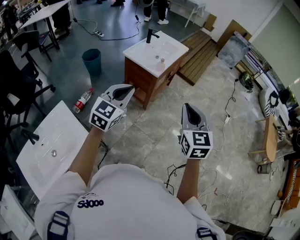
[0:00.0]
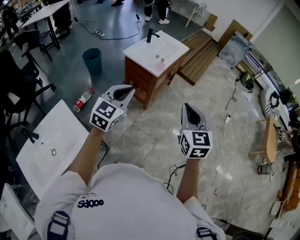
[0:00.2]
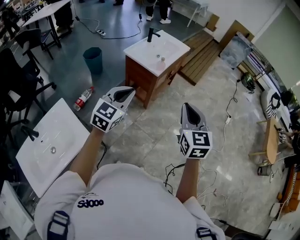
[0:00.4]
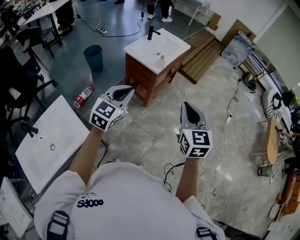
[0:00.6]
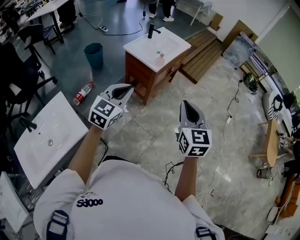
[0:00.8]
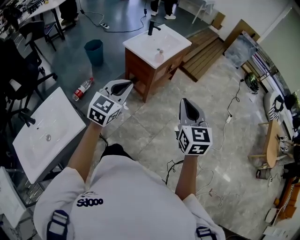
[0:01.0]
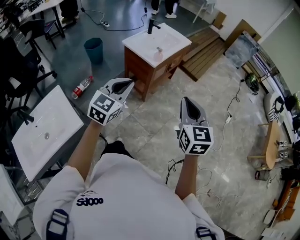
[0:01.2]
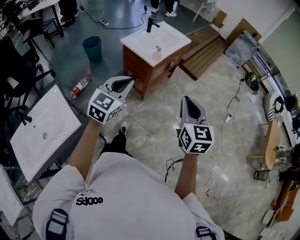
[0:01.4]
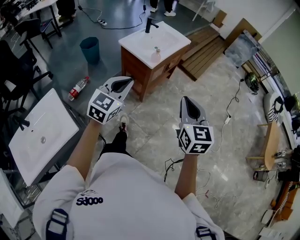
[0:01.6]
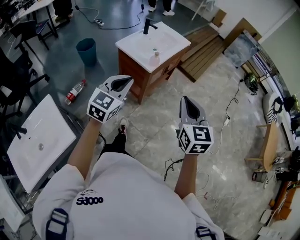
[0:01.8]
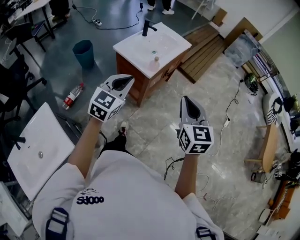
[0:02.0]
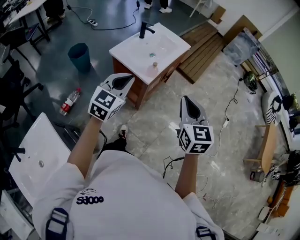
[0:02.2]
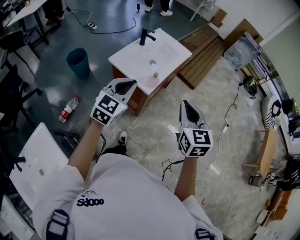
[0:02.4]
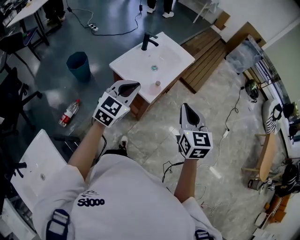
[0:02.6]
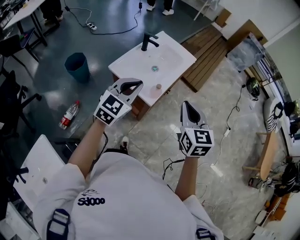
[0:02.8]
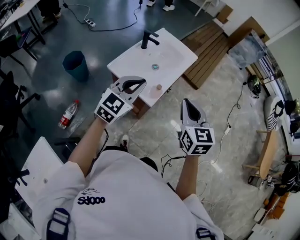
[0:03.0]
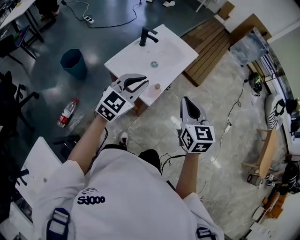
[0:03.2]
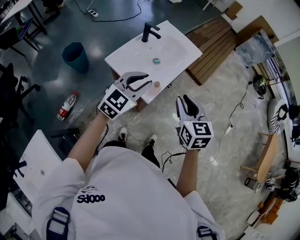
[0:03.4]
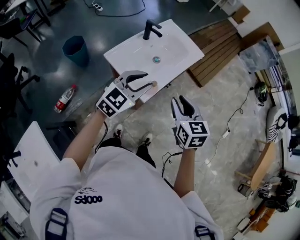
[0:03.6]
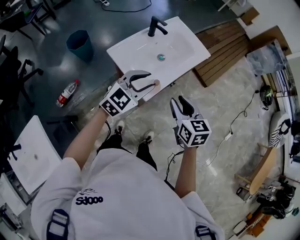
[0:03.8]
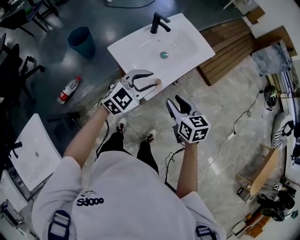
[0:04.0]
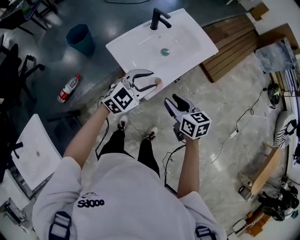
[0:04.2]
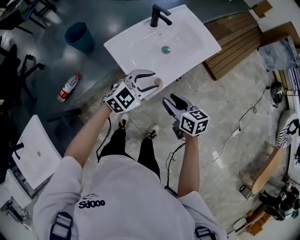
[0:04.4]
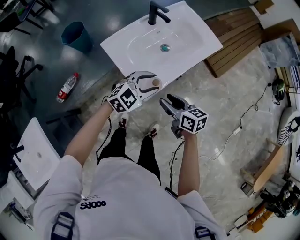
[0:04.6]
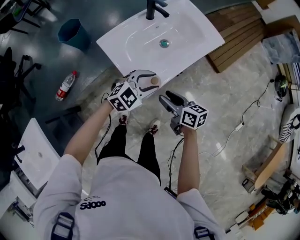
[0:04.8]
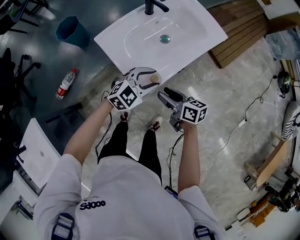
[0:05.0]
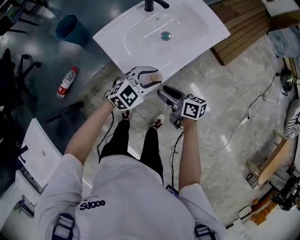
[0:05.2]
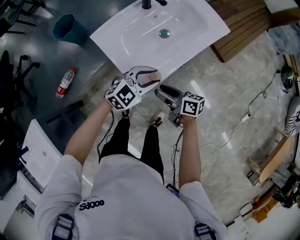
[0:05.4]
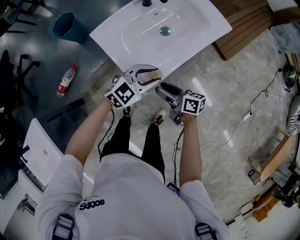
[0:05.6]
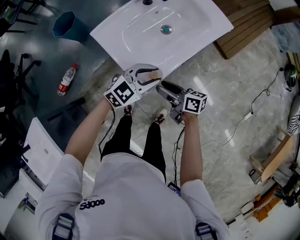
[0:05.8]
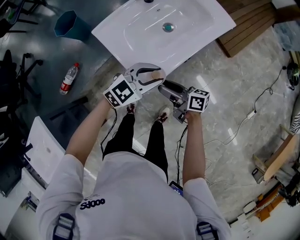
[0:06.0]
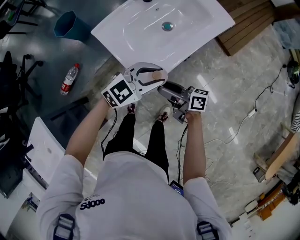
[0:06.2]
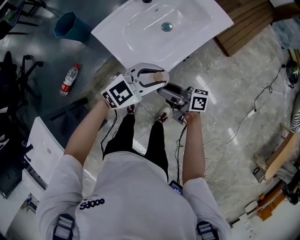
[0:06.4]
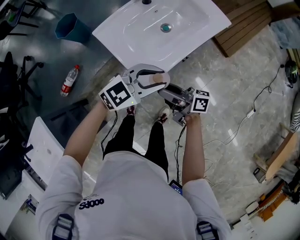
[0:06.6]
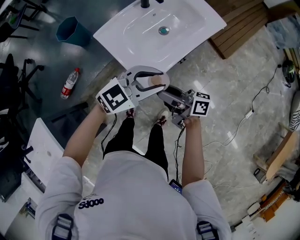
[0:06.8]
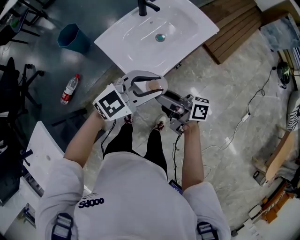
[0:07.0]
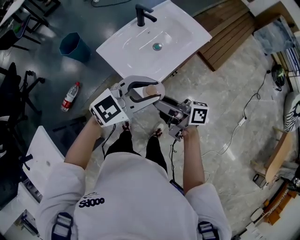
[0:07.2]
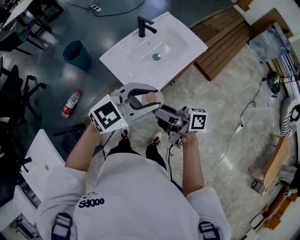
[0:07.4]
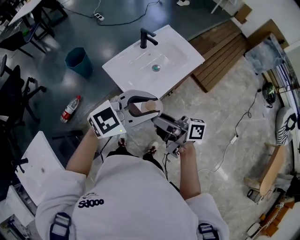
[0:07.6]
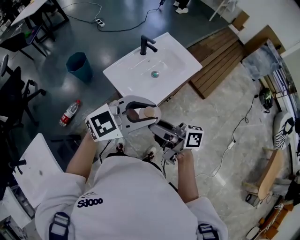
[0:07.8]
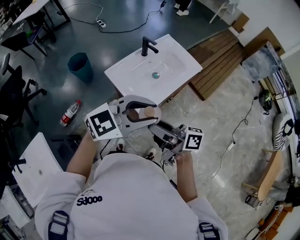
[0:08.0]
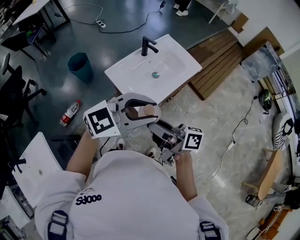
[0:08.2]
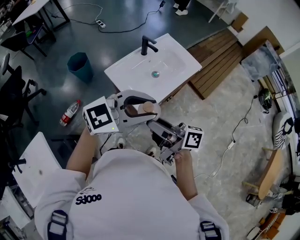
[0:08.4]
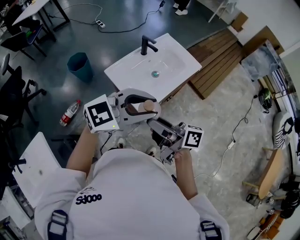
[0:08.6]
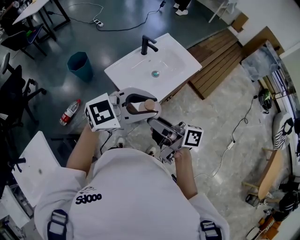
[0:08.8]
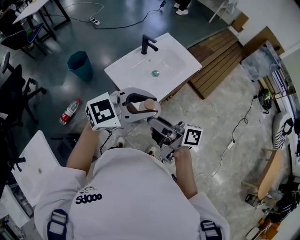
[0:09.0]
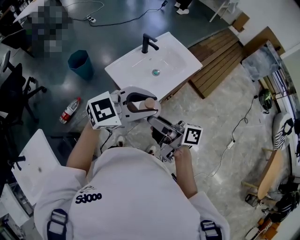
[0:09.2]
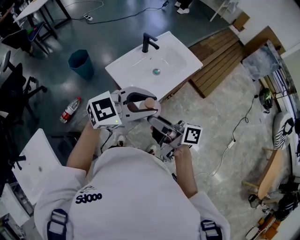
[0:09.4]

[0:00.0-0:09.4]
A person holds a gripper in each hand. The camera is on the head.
0.0 to 1.6 s: The left gripper heads to the right, covering roughly 5 cm, while the right gripper travels to the right and forward by approximately 10 cm.
1.6 to 3.2 s: The two grippers go roughly 35 cm forward.
3.2 to 4.8 s: The right gripper travels downward by approximately 25 cm, rotates some 60 degrees, and opens up. Meanwhile the left gripper shifts some 25 cm downward and to the right, and opens.
4.8 to 6.2 s: The right gripper turns by about 30 degrees.
6.2 to 7.8 s: The grippers both shift upward by some 25 cm.
7.8 to 9.4 s: There are only small adjustments of the grippers.

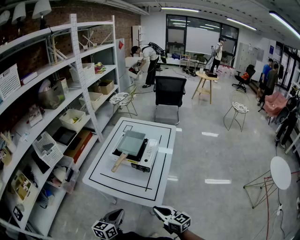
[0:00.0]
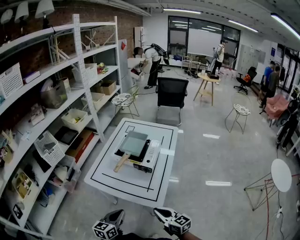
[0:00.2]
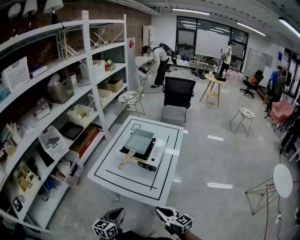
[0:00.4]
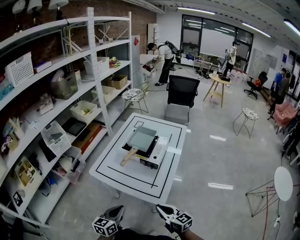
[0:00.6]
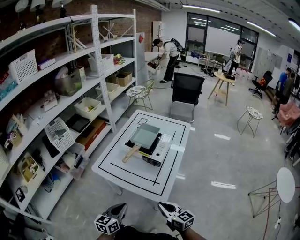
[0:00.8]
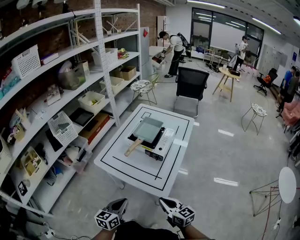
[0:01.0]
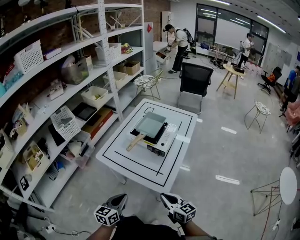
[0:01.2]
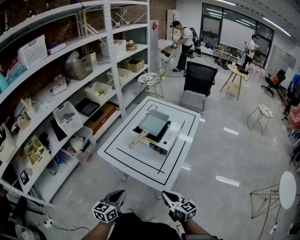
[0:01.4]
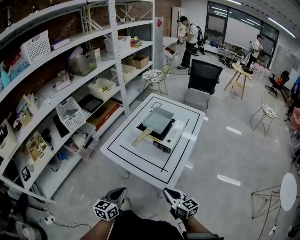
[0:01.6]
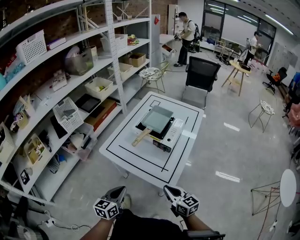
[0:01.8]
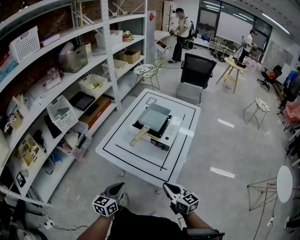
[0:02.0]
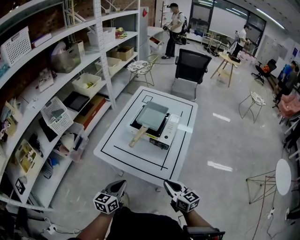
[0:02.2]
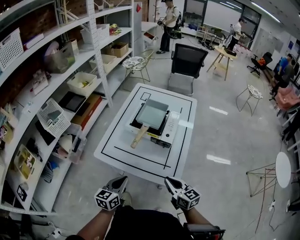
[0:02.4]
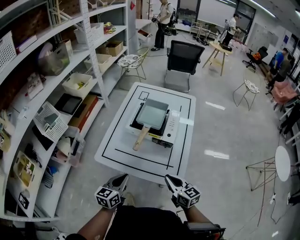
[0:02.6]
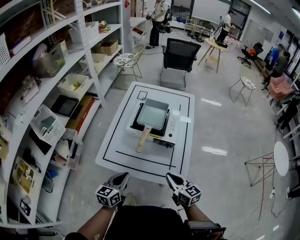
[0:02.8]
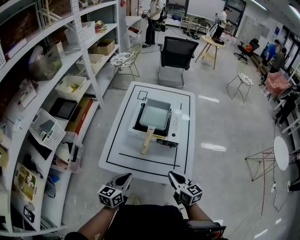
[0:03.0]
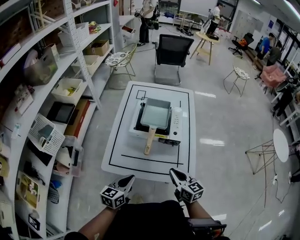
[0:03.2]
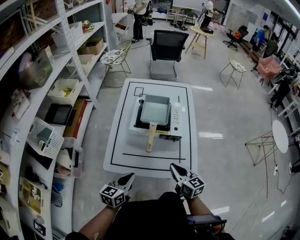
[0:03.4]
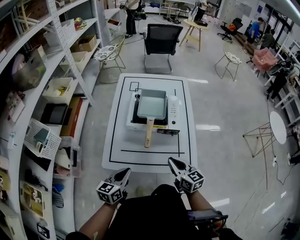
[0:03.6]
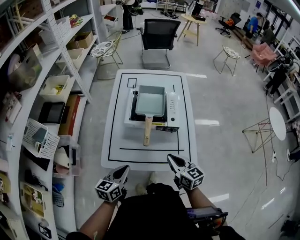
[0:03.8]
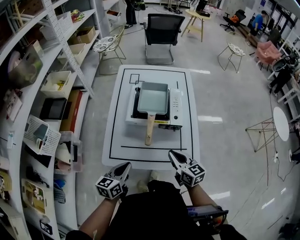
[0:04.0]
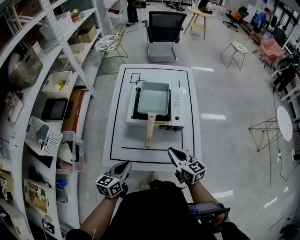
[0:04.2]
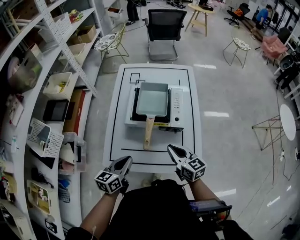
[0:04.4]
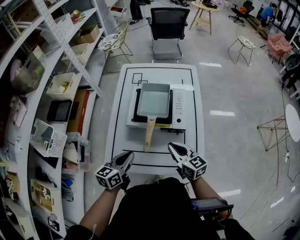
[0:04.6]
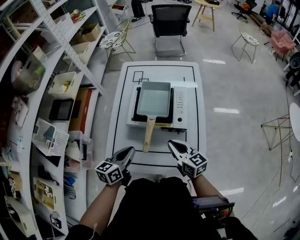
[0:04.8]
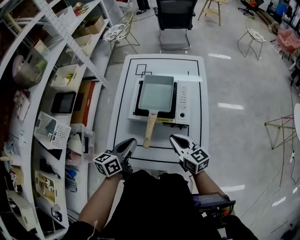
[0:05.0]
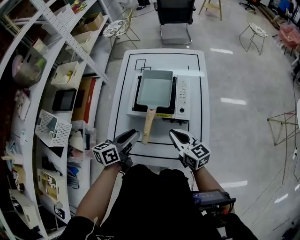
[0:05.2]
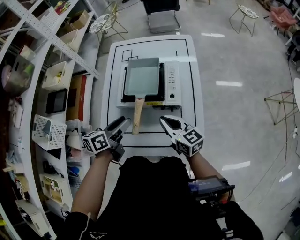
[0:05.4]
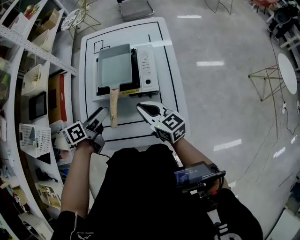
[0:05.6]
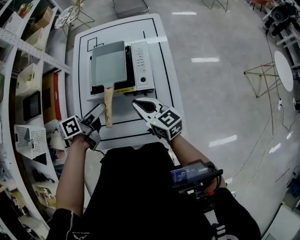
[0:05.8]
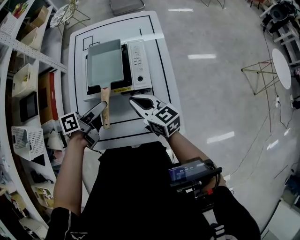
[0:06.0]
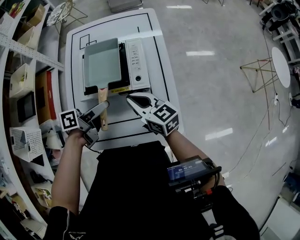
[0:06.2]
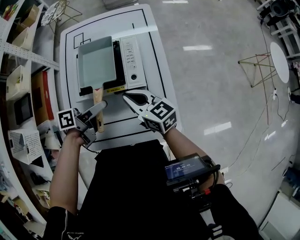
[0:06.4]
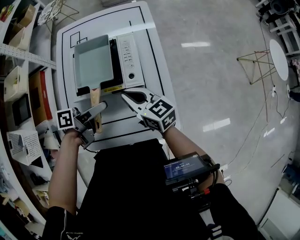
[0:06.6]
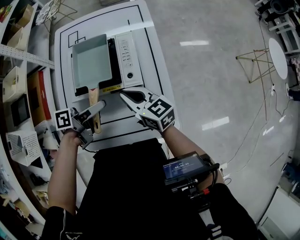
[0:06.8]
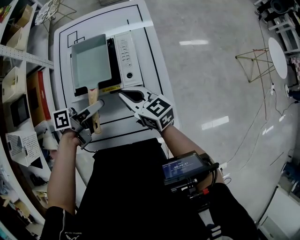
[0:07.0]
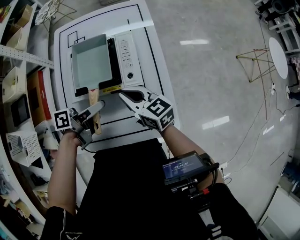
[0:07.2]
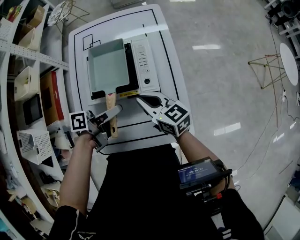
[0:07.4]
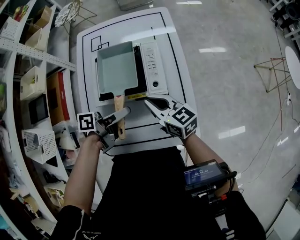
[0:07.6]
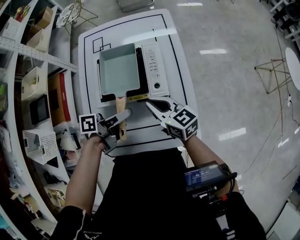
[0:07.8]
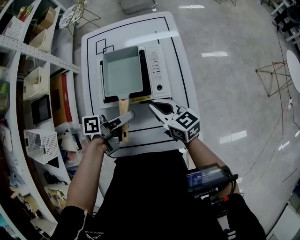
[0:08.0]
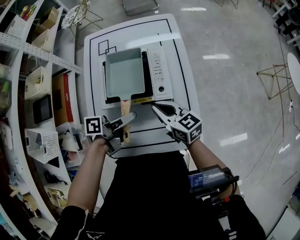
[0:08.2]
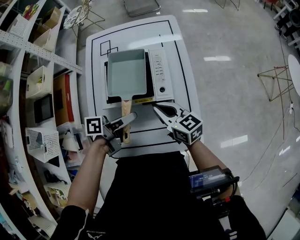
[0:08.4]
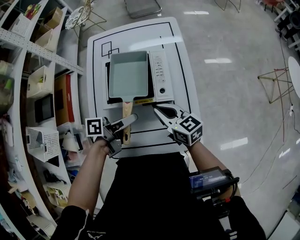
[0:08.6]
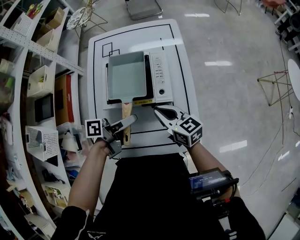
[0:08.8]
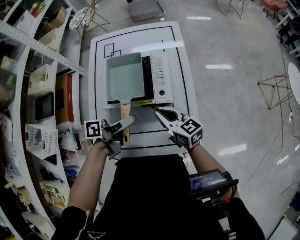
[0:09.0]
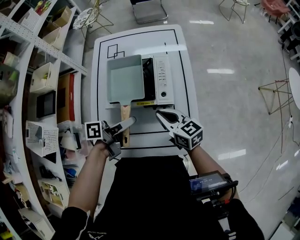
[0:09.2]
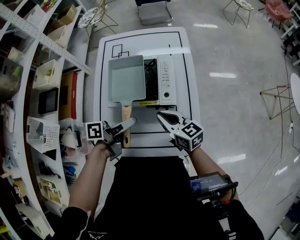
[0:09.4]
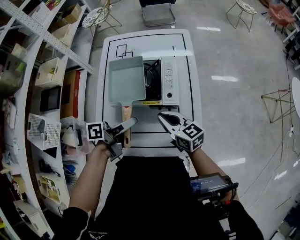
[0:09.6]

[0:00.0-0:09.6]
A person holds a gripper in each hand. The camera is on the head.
0.0 to 1.6 s: There are only small adjustments of the grippers.
1.6 to 3.2 s: The left gripper ends up about 20 cm from where it was, and swivels about 30 degrees, while the right gripper ends up roughly 15 cm from where it was, and rotates approximately 30 degrees.
3.2 to 4.8 s: Both grippers move forward, about 10 cm.
4.8 to 6.4 s: The right gripper heads forward, covering roughly 5 cm. The left gripper moves to the right and forward, about 15 cm, turns by about 50 degrees, and opens its fingers.
6.4 to 8.0 s: The left gripper closes its fingers.
8.0 to 9.6 s: There are only small adjustments of the grippers.

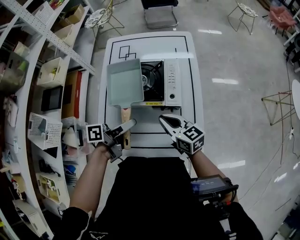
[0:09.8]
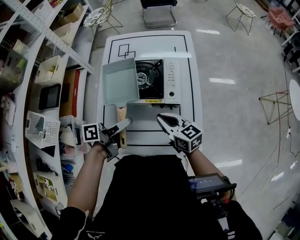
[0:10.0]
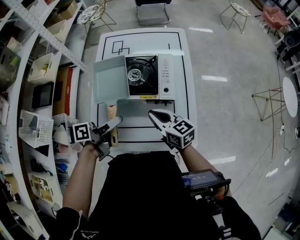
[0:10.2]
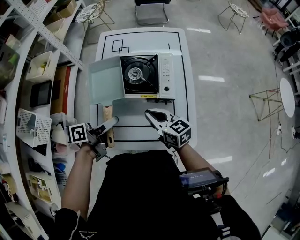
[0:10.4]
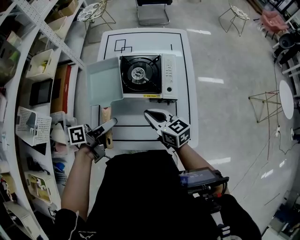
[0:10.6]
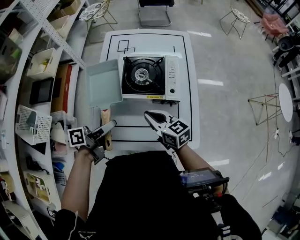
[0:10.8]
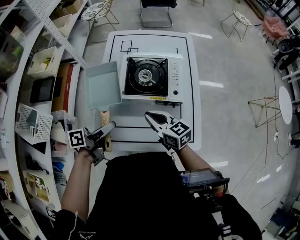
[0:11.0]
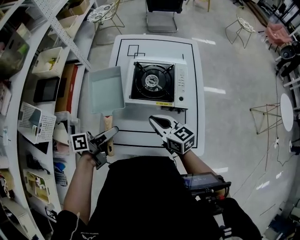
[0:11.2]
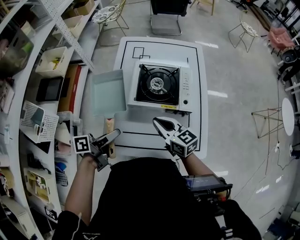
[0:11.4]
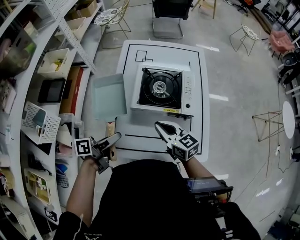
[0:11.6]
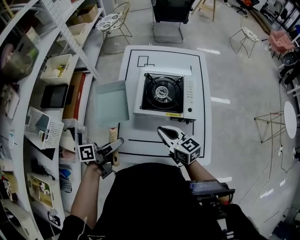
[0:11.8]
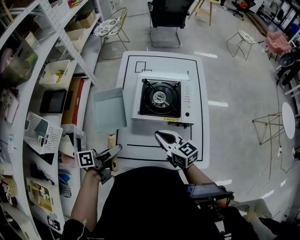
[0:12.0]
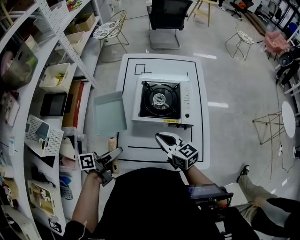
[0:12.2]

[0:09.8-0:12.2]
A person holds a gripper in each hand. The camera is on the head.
9.8 to 11.0 s: Both grippers travel together to the left, approximately 10 cm.
11.0 to 12.2 s: The left gripper ends up about 5 cm from where it was.

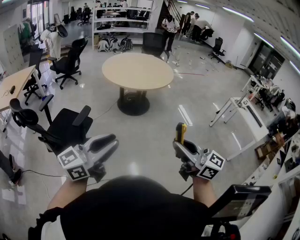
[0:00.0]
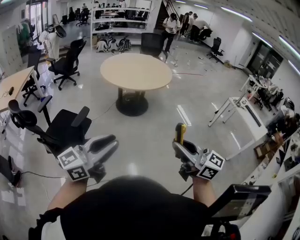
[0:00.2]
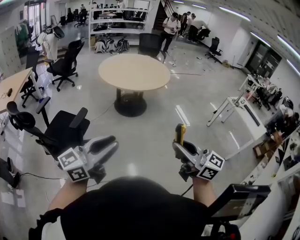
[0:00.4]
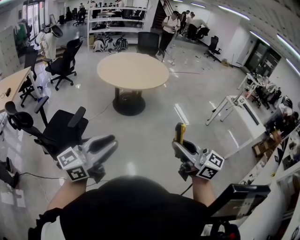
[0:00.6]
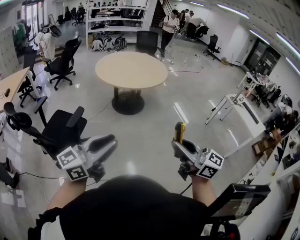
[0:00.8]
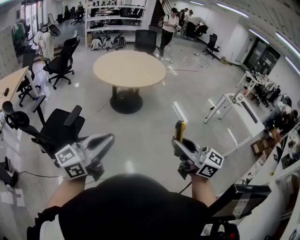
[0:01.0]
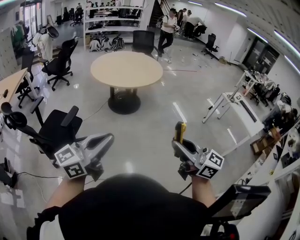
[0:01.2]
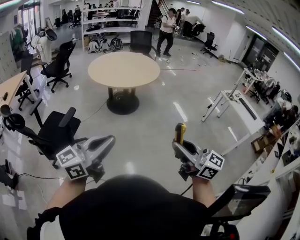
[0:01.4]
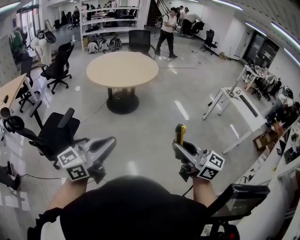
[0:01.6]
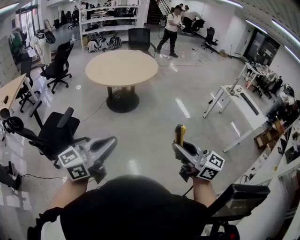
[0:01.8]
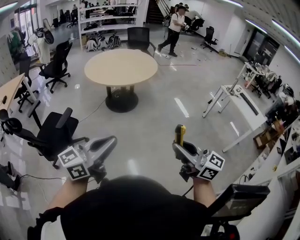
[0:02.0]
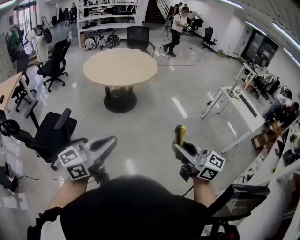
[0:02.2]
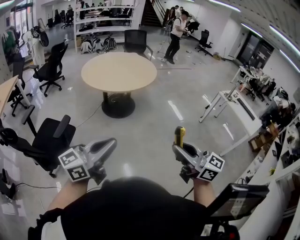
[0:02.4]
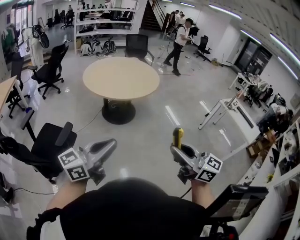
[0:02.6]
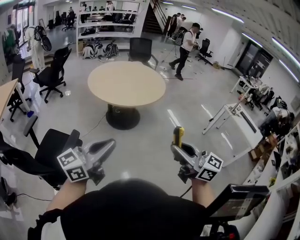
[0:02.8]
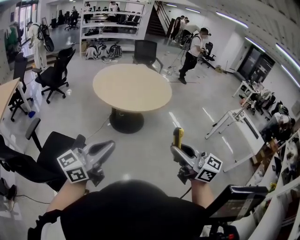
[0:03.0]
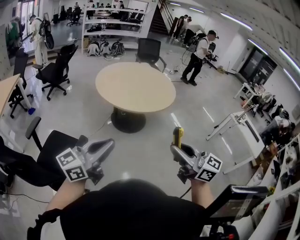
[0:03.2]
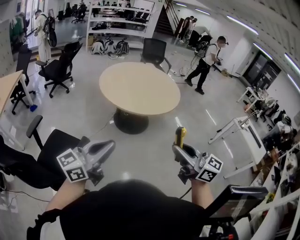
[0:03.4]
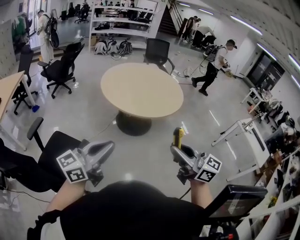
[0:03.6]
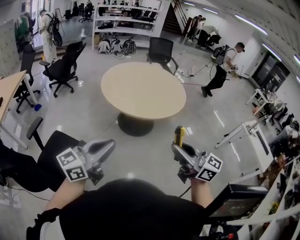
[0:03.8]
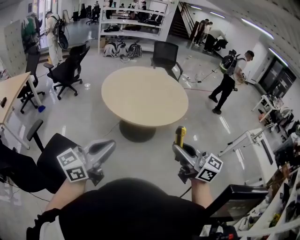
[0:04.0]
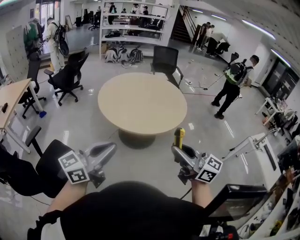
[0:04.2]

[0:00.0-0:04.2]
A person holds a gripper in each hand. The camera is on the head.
0.0 to 1.4 s: Both grippers travel together to the right, roughly 10 cm. The left gripper closes up.
1.4 to 2.8 s: The two grippers go about 25 cm forward and to the left.
2.8 to 4.2 s: The grippers both shift forward by approximately 30 cm.
